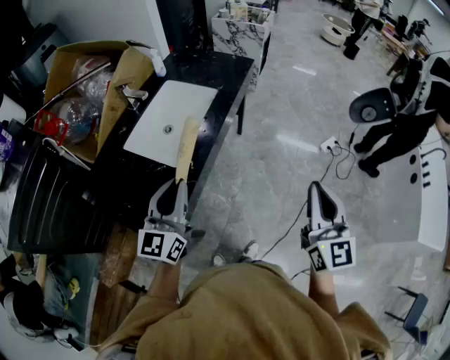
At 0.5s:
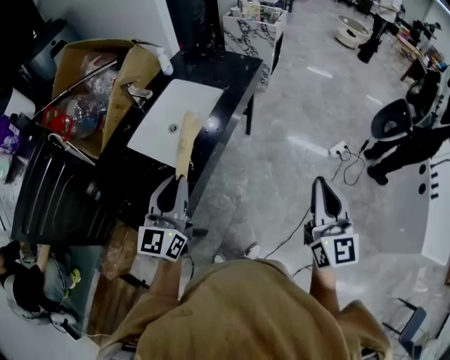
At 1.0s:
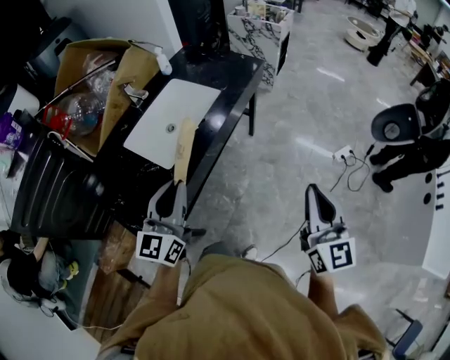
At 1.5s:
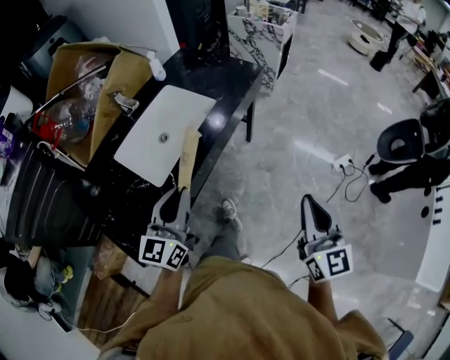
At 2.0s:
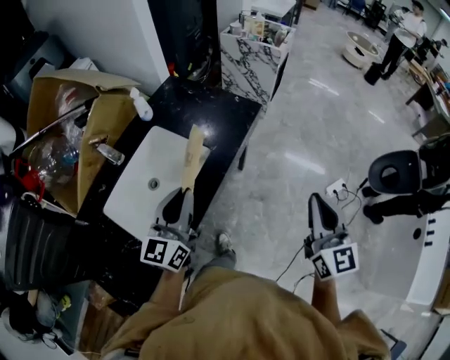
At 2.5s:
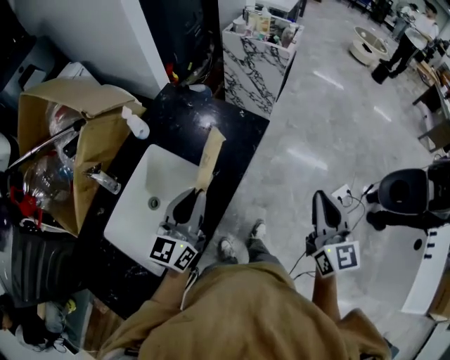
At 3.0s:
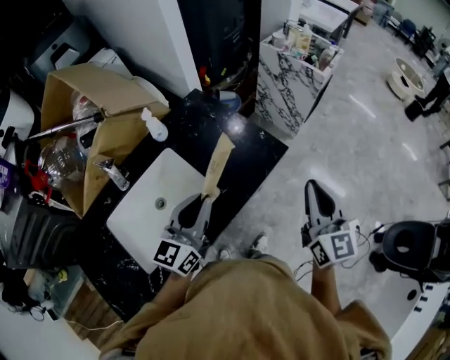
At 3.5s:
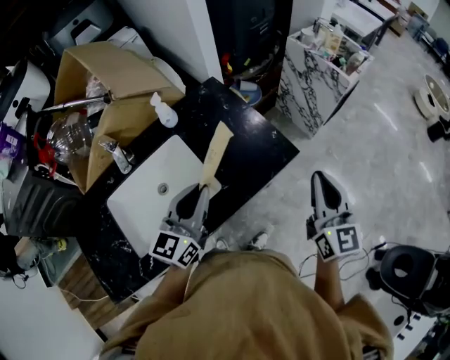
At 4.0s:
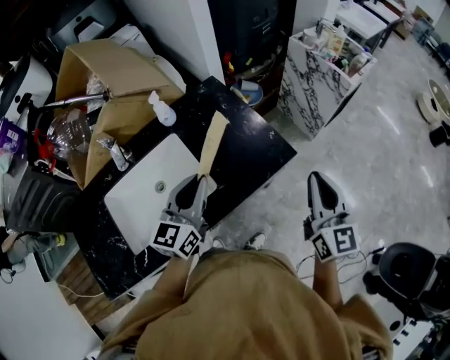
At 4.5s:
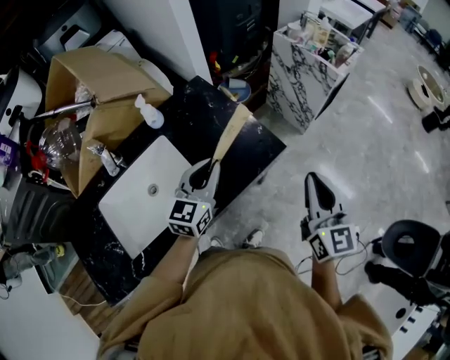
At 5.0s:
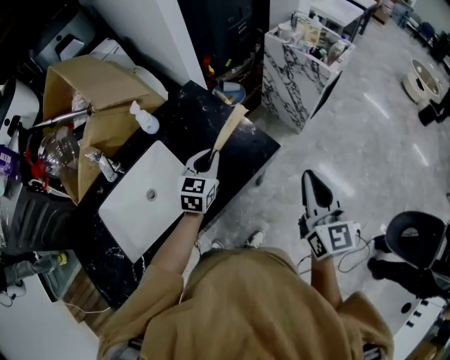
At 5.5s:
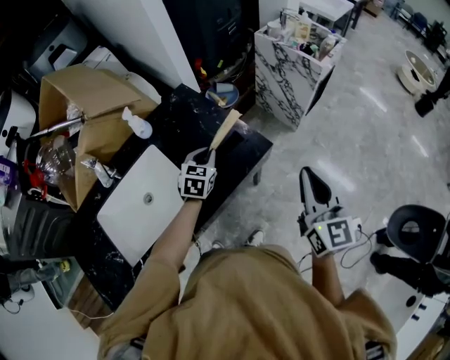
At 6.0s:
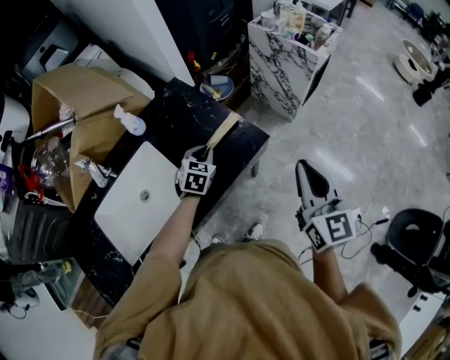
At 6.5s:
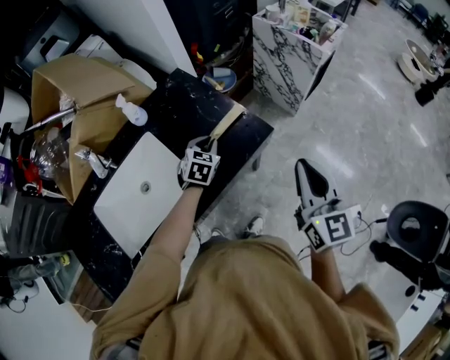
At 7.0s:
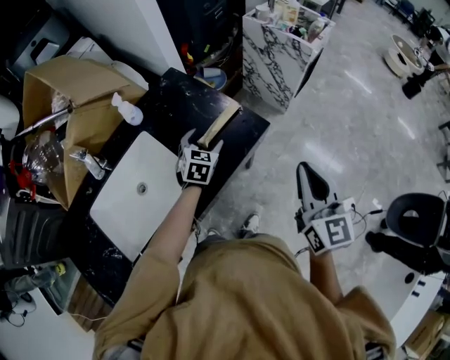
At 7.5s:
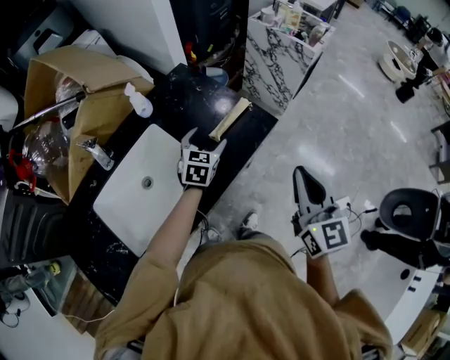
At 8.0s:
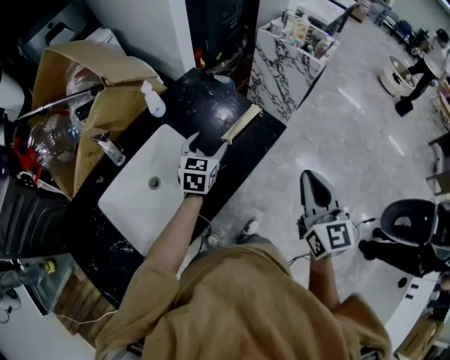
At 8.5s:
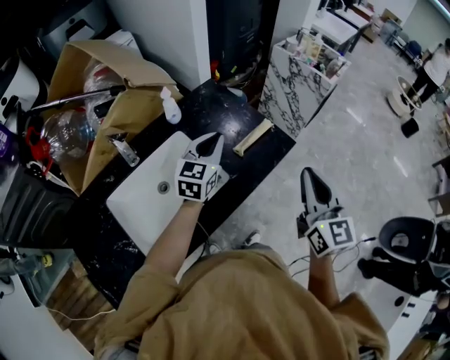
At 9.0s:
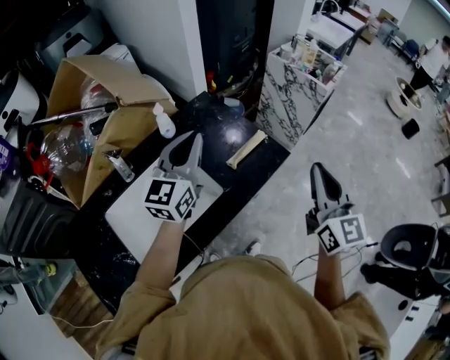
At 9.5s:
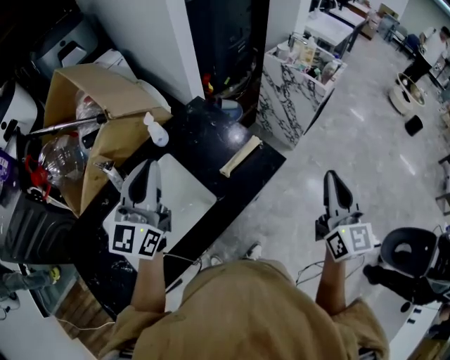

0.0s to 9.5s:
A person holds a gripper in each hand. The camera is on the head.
0.0s to 2.0s: Both grippers travel together forward, some 35 cm.
2.0s to 4.0s: The left gripper shifts by approximately 25 cm, and turns by some 20 degrees. Meanwhile the right gripper changes place by about 35 cm, and changes its angle by about 20 degrees.
4.0s to 5.5s: The left gripper travels downward, forward and to the right by approximately 20 cm, and points its fingers some 30 degrees further downward; the right gripper is displaced to the right by roughly 5 cm.
5.5s to 7.5s: The left gripper shifts by roughly 5 cm, and opens its fingers. The right gripper heads to the left and backward, covering approximately 15 cm.
7.5s to 9.5s: The left gripper moves upward and to the left, some 30 cm, tilts its fingers some 40 degrees upward, and closes. Meanwhile the right gripper is displaced forward, upward and to the right by some 10 cm.

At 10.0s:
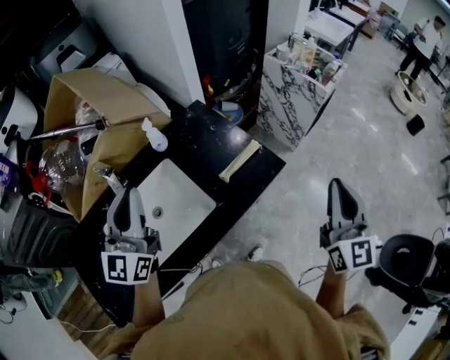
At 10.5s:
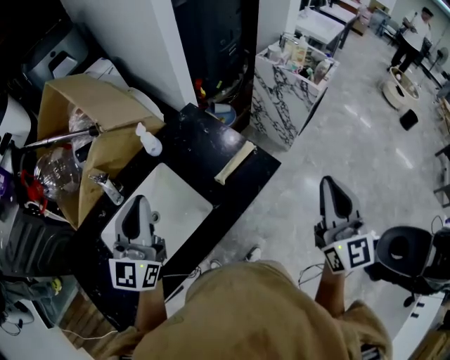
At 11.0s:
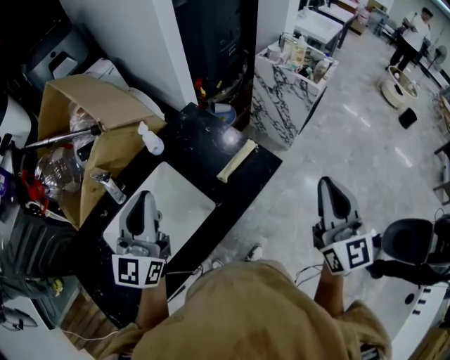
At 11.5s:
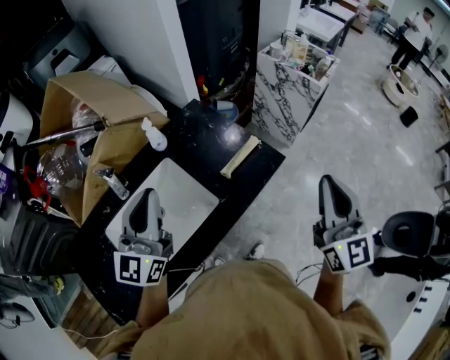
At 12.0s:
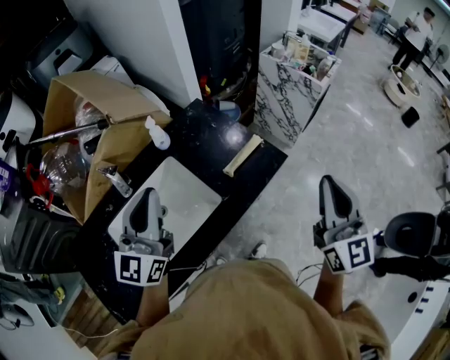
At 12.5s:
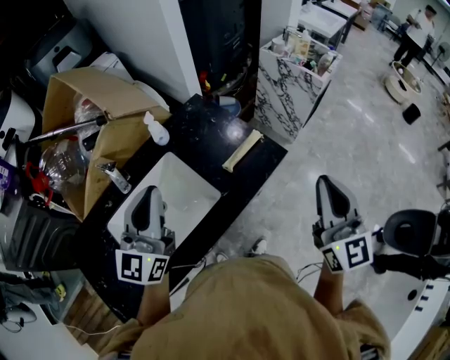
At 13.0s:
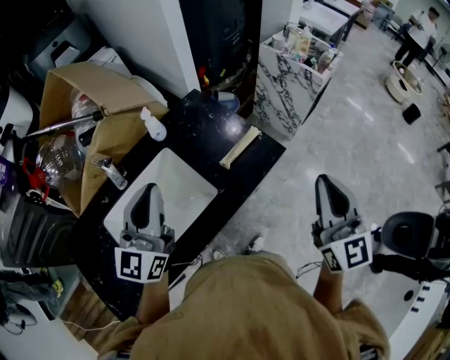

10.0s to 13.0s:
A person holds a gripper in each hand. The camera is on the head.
10.0s to 11.5s: The right gripper is displaced to the left by some 5 cm.
11.5s to 13.0s: The grippers stay close to where they were, moving slightly.

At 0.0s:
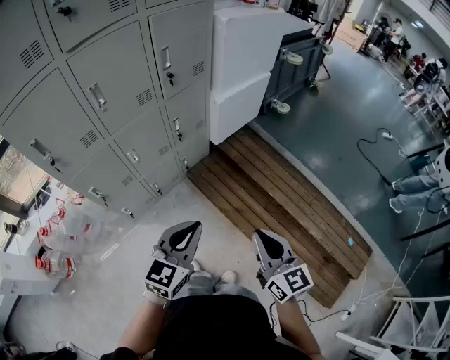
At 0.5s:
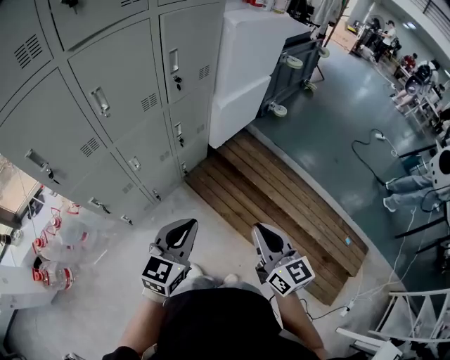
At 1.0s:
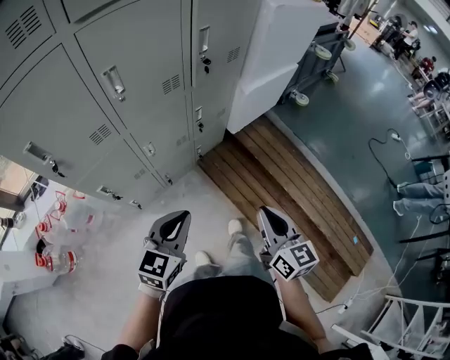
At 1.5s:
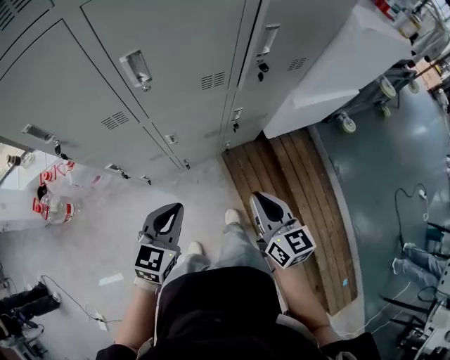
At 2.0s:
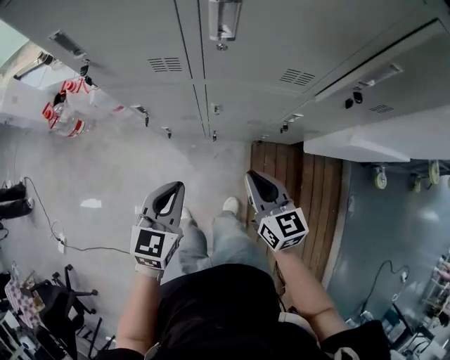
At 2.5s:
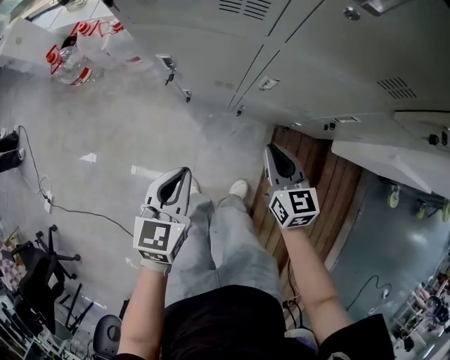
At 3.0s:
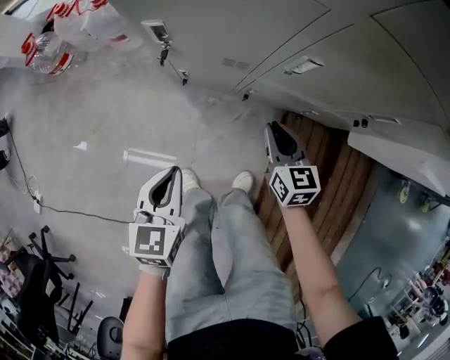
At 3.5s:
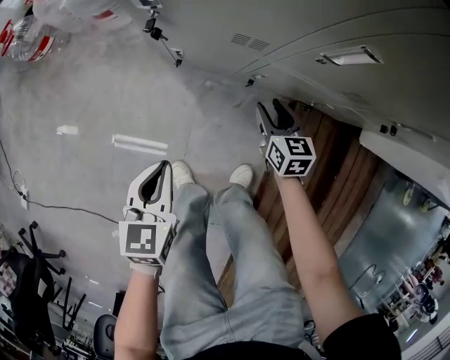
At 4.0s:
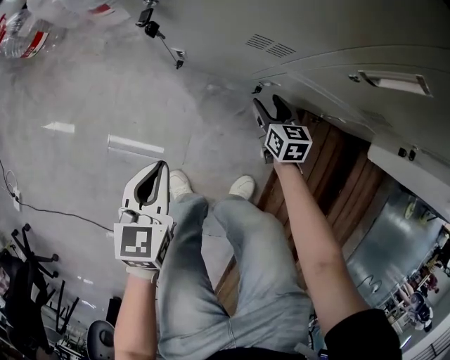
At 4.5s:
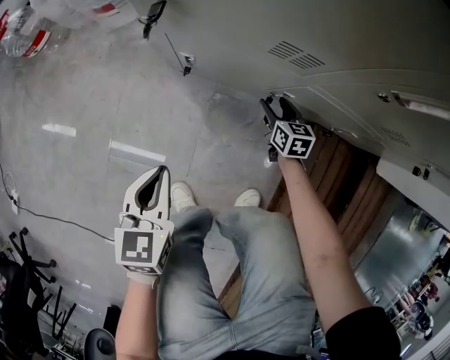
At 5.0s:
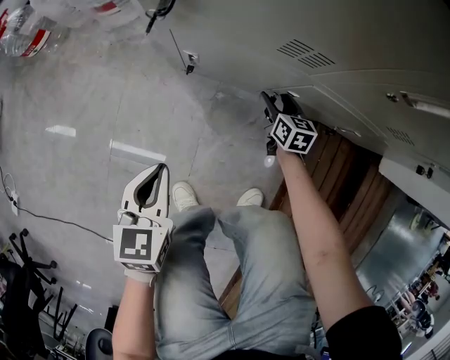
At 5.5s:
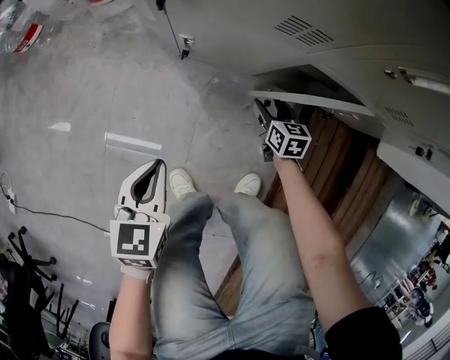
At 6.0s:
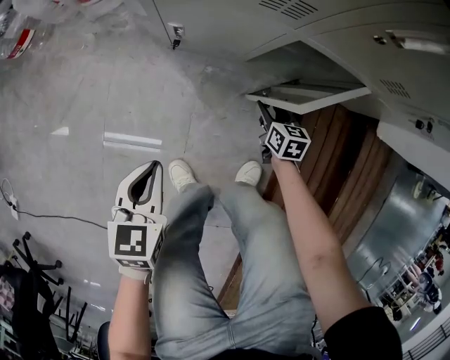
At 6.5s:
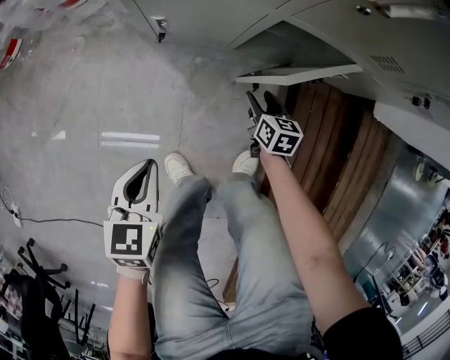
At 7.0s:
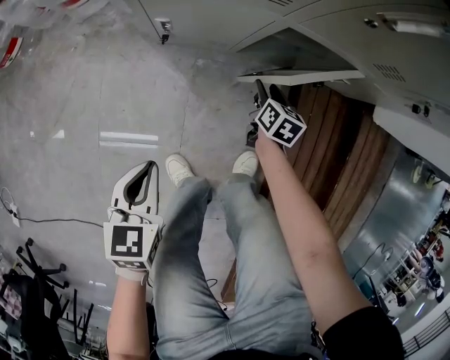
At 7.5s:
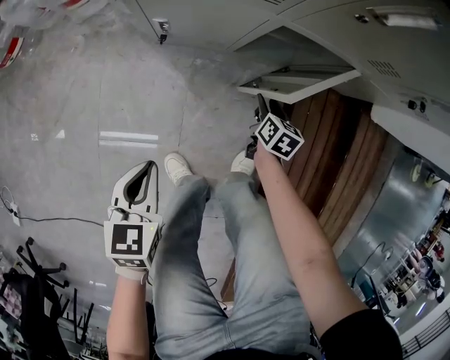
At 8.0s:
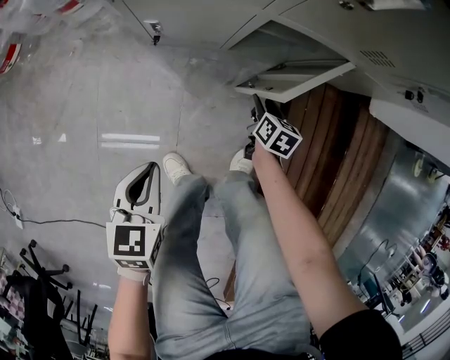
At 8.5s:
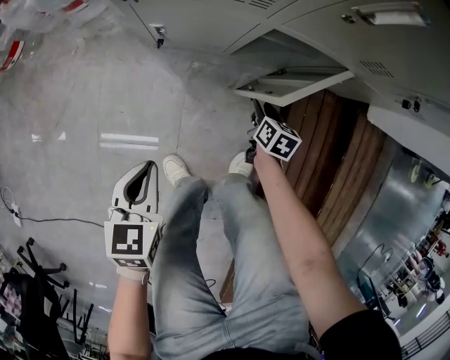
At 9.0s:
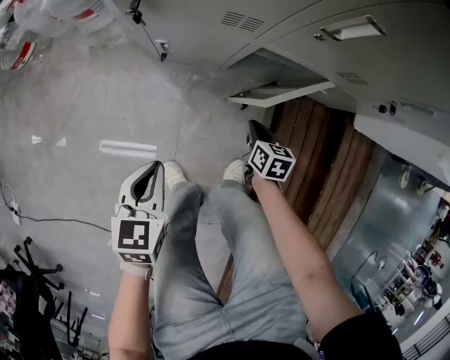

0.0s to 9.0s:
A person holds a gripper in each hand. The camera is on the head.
0.0s to 2.0s: The left gripper shifts by about 35 cm, and changes its angle by about 60 degrees; the right gripper shifts by some 50 cm, and rotates some 50 degrees.
2.0s to 4.5s: The grippers both shift downward by roughly 60 cm. The right gripper rotates some 20 degrees, and opens. Meanwhile the left gripper changes its angle by some 30 degrees.
4.5s to 7.0s: The two grippers go approximately 10 cm backward. The right gripper rotates some 30 degrees.
7.0s to 9.0s: The left gripper moves upward, some 5 cm, while the right gripper travels backward and upward by roughly 10 cm, and closes.

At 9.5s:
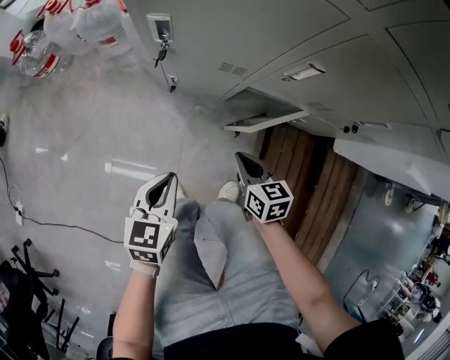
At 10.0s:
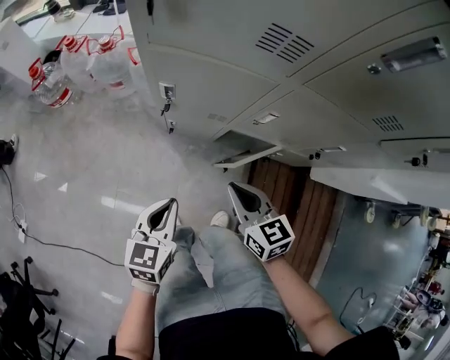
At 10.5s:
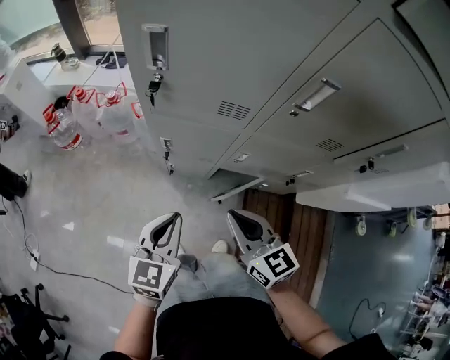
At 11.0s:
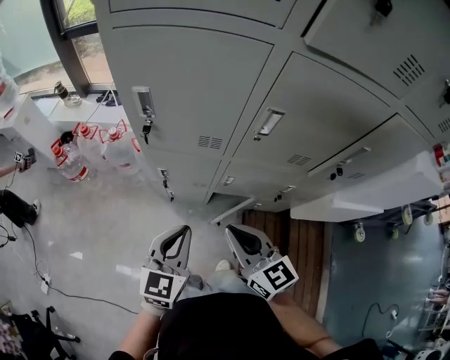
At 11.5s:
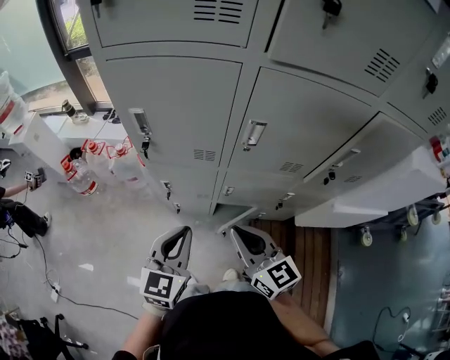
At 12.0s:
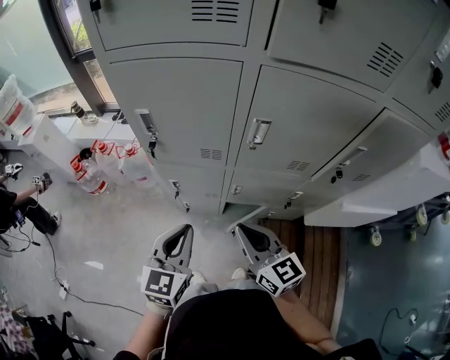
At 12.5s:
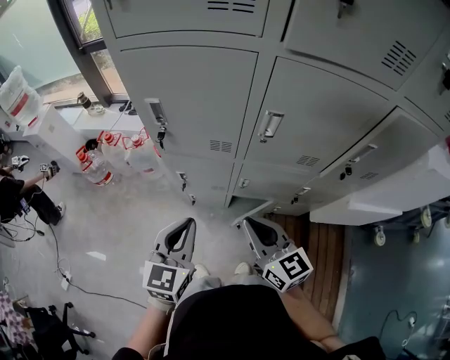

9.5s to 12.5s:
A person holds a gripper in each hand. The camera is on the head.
9.5s to 11.0s: Both grippers travel together upward, about 50 cm. The left gripper rotates roughly 30 degrees. The right gripper tilts its fingers approximately 30 degrees upward.
11.0s to 12.5s: The grippers stay close to where they were, moving slightly.

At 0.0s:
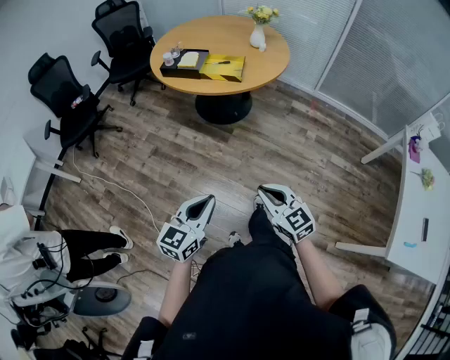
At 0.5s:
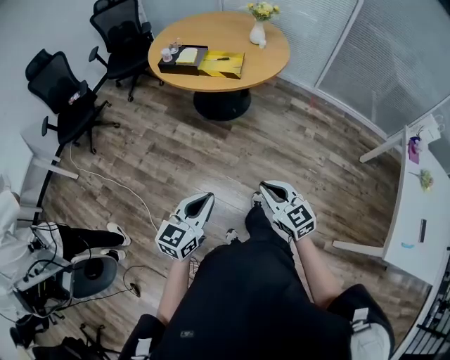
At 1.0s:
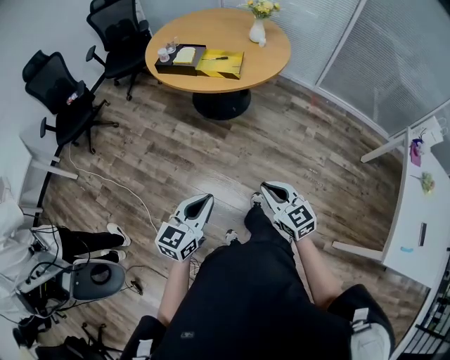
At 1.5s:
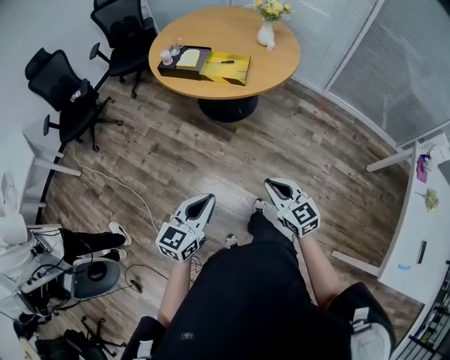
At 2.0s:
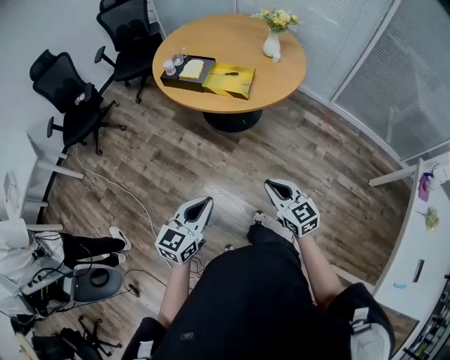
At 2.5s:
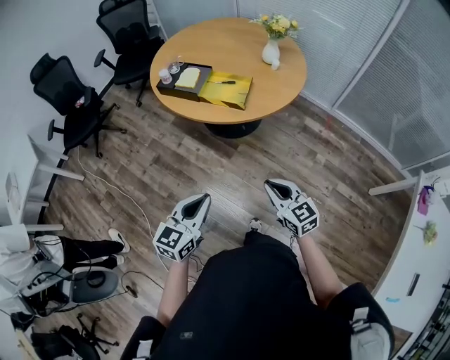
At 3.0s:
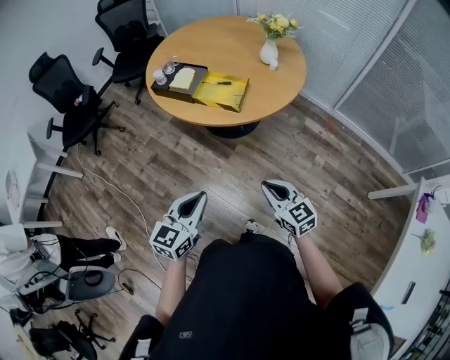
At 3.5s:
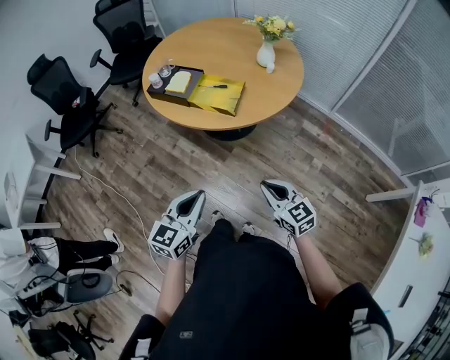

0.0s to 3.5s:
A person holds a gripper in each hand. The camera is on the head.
0.0s to 2.0s: The grippers both shift forward by roughly 20 cm.
2.0s to 3.5s: Both grippers travel together forward and to the right, some 15 cm.
